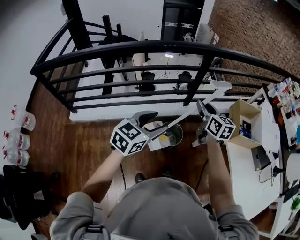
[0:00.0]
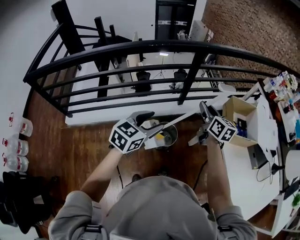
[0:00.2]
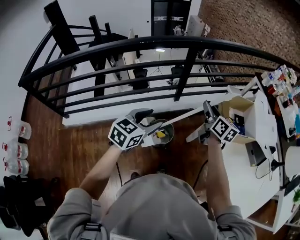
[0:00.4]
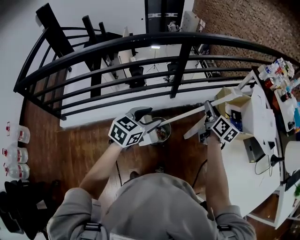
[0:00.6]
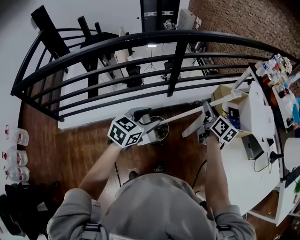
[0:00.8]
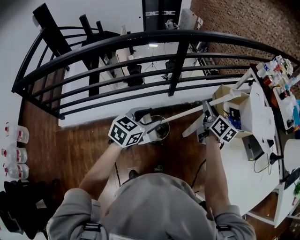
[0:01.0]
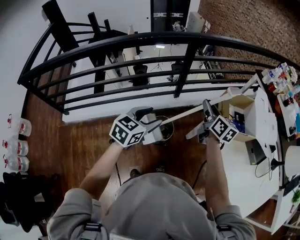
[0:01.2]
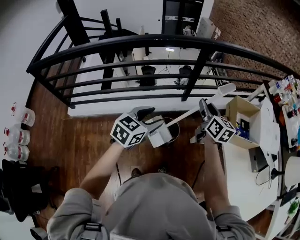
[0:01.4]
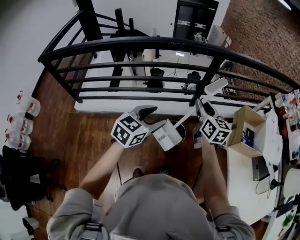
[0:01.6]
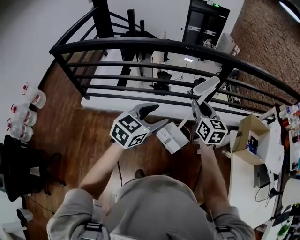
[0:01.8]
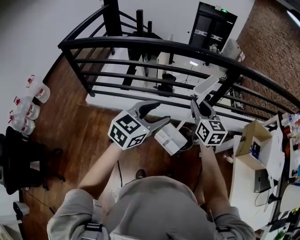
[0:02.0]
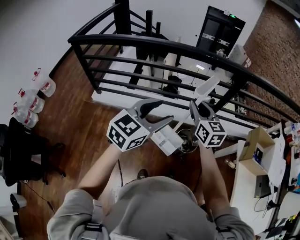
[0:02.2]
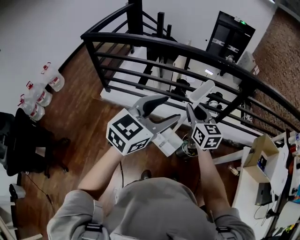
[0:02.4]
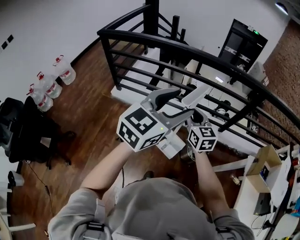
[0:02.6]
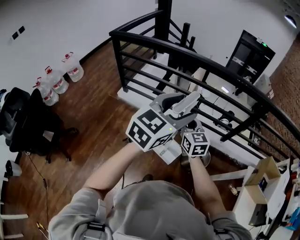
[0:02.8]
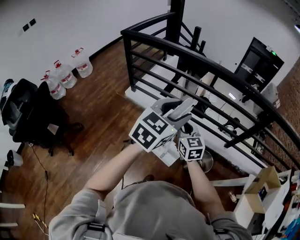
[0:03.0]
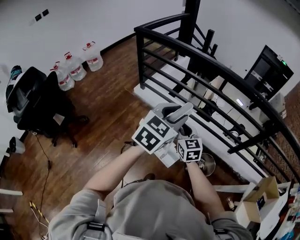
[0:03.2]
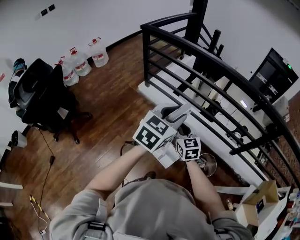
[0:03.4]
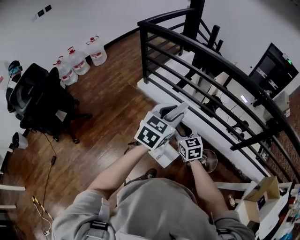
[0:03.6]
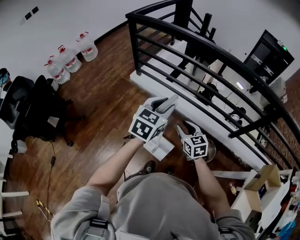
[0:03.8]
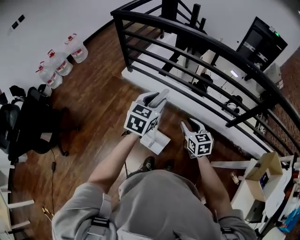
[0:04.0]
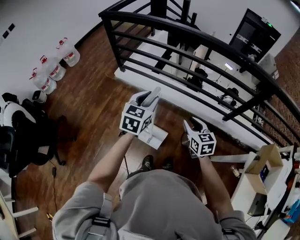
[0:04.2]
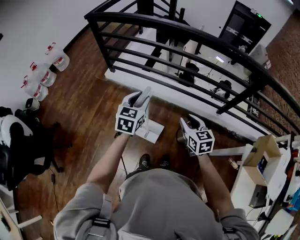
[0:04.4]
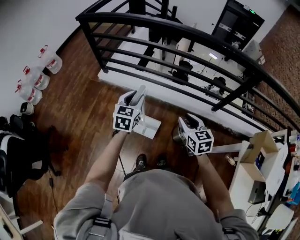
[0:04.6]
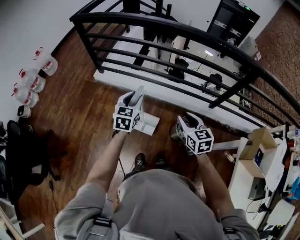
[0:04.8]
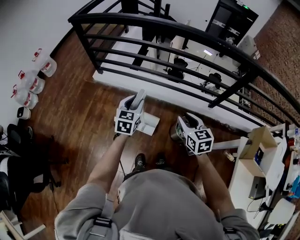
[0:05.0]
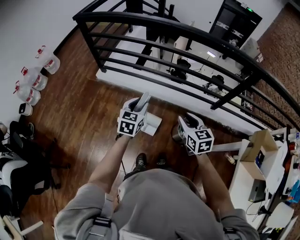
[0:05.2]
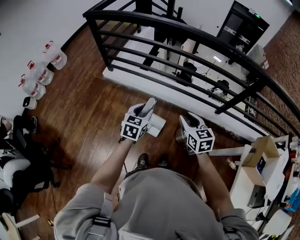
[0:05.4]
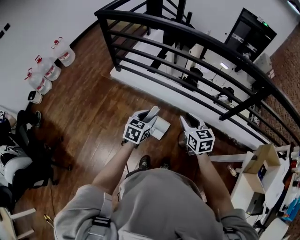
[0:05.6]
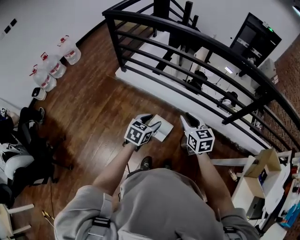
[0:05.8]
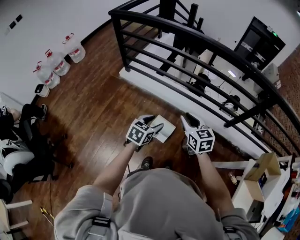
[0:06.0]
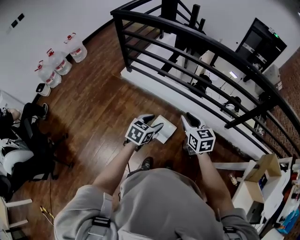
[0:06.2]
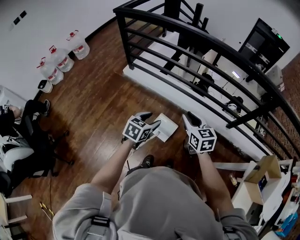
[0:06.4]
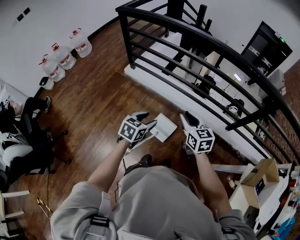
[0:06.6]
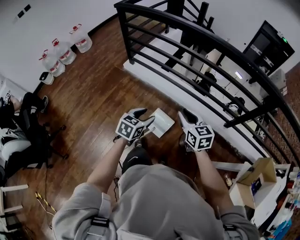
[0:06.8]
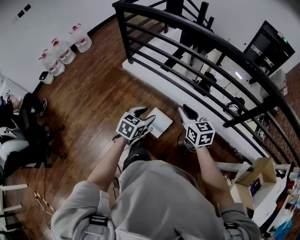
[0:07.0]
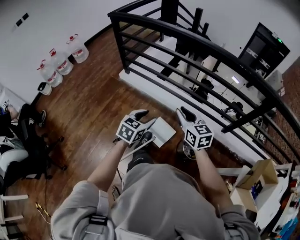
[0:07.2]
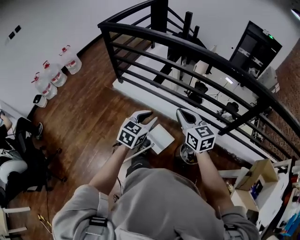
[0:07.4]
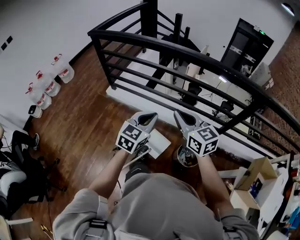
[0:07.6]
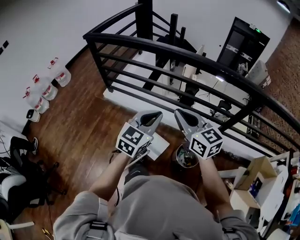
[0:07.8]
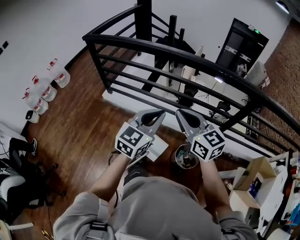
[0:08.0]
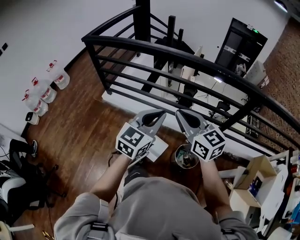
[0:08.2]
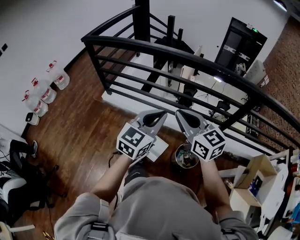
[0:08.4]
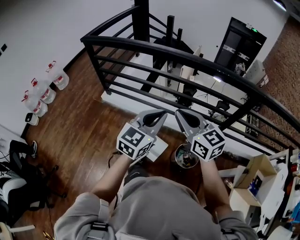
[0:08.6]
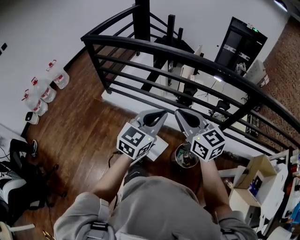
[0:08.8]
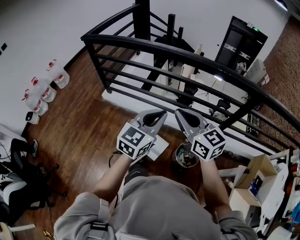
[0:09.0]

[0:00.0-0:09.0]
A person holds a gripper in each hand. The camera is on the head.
0.0 to 1.6 s: The left gripper reaches about 10 cm to the right, then returns. Meanwhile the right gripper travels to the right and back again, approximately 20 cm each way.
1.6 to 3.0 s: The right gripper shifts by roughly 40 cm, and turns by about 40 degrees. The left gripper shifts by roughly 25 cm, and turns by about 30 degrees.
3.0 to 4.4 s: The right gripper is displaced to the right and downward by approximately 15 cm; the left gripper moves downward, some 20 cm, and changes its angle by approximately 20 degrees.
4.4 to 6.0 s: The right gripper heads to the left, covering approximately 5 cm; the left gripper heads downward and backward, covering approximately 15 cm.
6.0 to 7.6 s: The right gripper goes approximately 15 cm upward and to the right, and closes up. The left gripper is displaced upward, to the right and forward by about 20 cm, swivels about 20 degrees, and closes its fingers.
7.6 to 9.0 s: The right gripper shifts by some 5 cm. Meanwhile the left gripper goes about 5 cm upward.

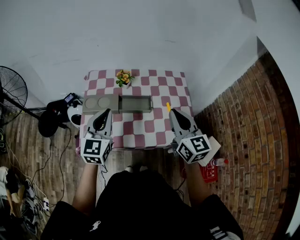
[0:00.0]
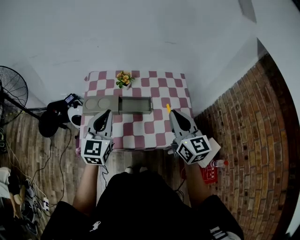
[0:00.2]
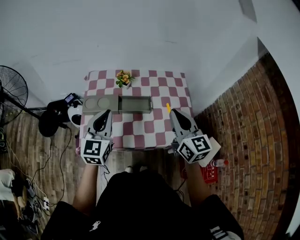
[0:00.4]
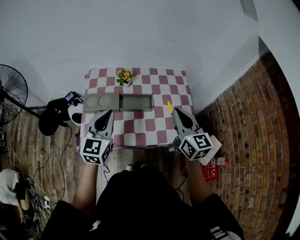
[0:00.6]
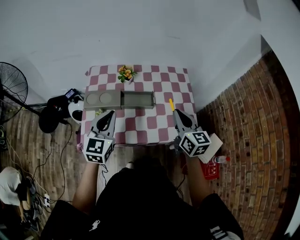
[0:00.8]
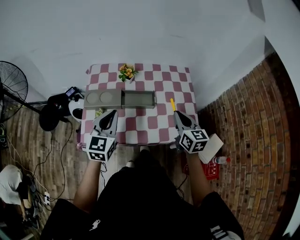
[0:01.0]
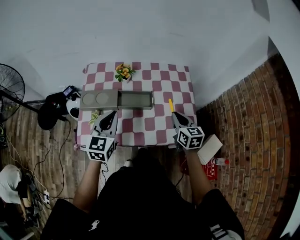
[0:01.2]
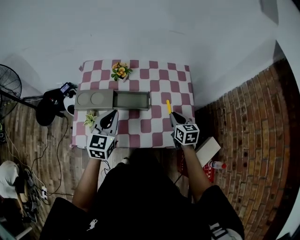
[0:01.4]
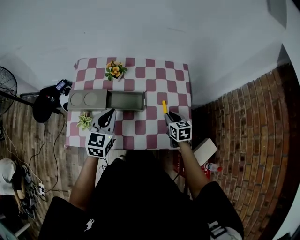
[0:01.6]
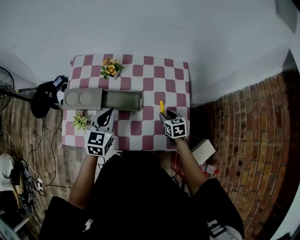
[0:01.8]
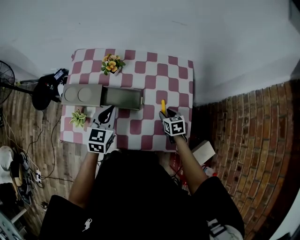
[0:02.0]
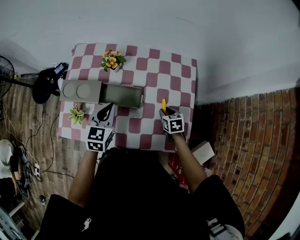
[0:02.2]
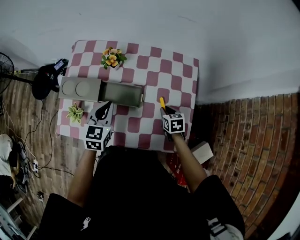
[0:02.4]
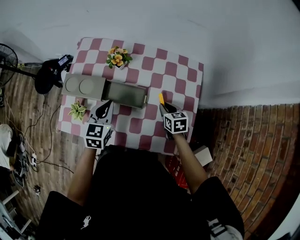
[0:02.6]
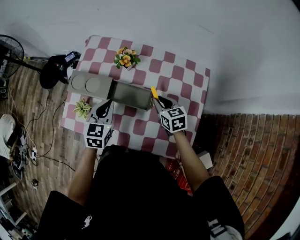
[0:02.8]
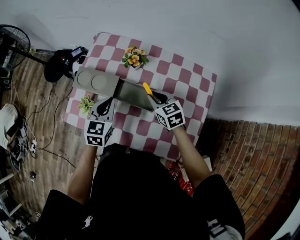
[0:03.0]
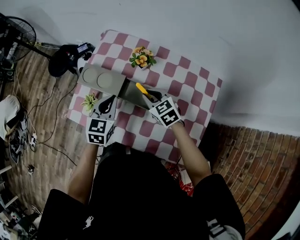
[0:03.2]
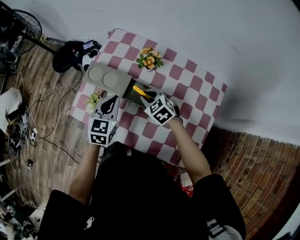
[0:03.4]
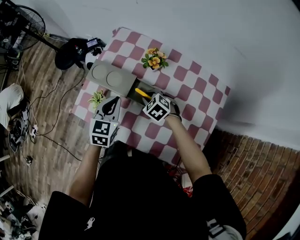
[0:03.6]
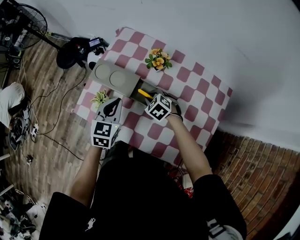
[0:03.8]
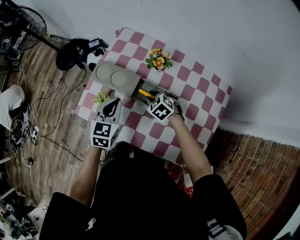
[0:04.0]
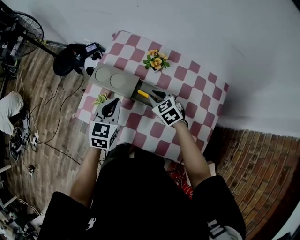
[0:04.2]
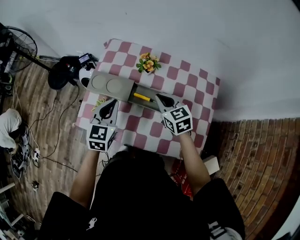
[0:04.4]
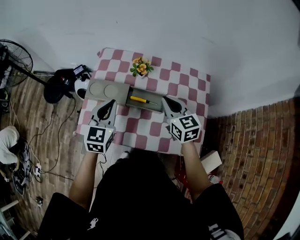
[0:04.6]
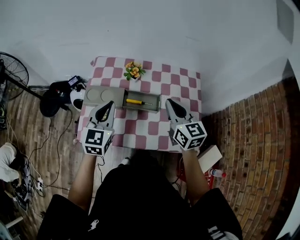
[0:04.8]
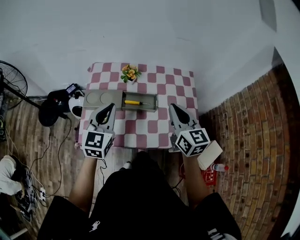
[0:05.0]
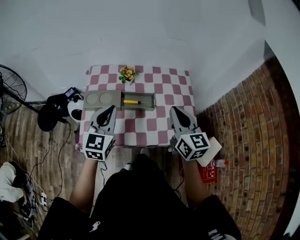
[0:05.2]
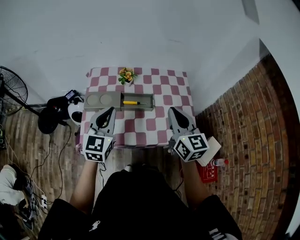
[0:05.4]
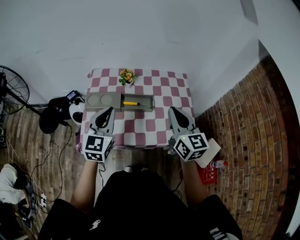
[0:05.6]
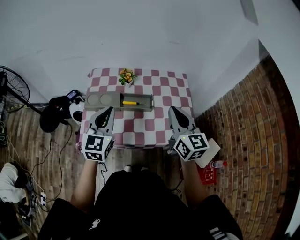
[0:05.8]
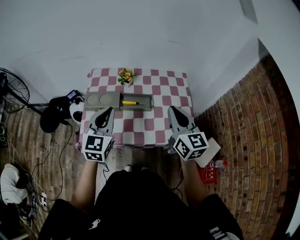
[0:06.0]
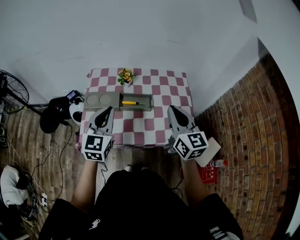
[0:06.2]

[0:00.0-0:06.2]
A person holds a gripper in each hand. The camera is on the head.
0.0 to 1.6 s: The right gripper goes some 30 cm downward and forward, and angles its fingers downward, by approximately 40 degrees. Meanwhile the left gripper moves downward, forward and to the right, roughly 15 cm.
1.6 to 3.2 s: The right gripper goes downward and returns, approximately 10 cm each way, and swivels about 50 degrees, while the left gripper changes place by approximately 10 cm, and rotates approximately 20 degrees.
3.2 to 4.6 s: The right gripper moves upward and backward, approximately 15 cm, and swivels roughly 30 degrees. The left gripper is displaced upward by about 10 cm.
4.6 to 6.2 s: The left gripper goes approximately 15 cm upward and backward; the right gripper travels backward and upward by roughly 20 cm, and swivels roughly 30 degrees.

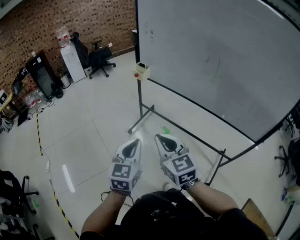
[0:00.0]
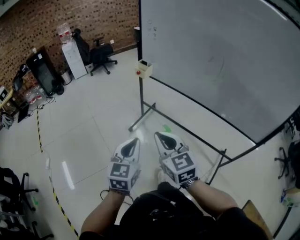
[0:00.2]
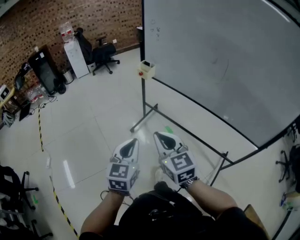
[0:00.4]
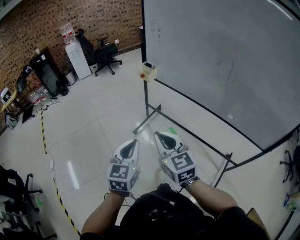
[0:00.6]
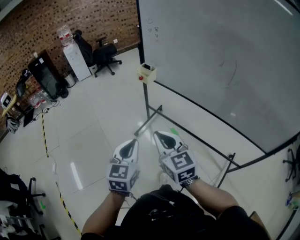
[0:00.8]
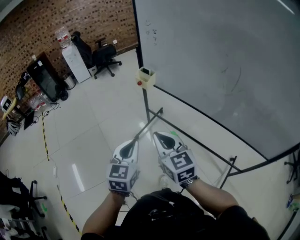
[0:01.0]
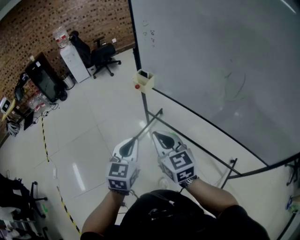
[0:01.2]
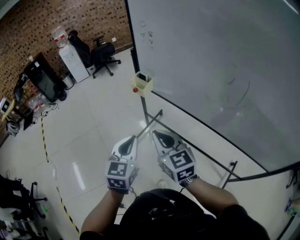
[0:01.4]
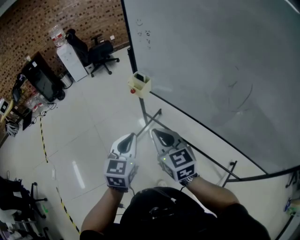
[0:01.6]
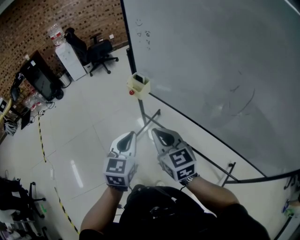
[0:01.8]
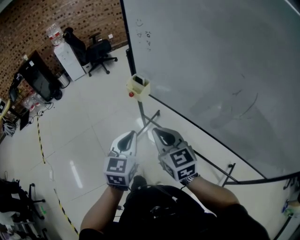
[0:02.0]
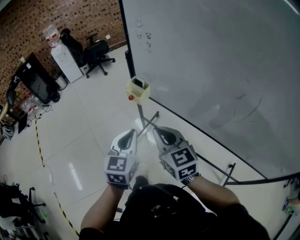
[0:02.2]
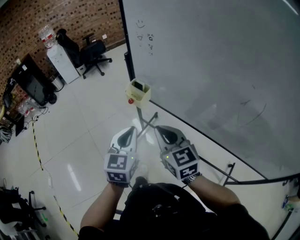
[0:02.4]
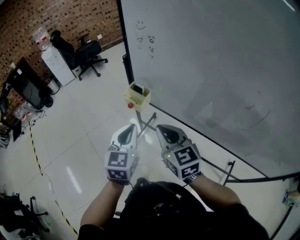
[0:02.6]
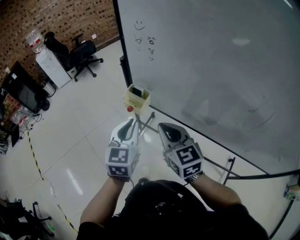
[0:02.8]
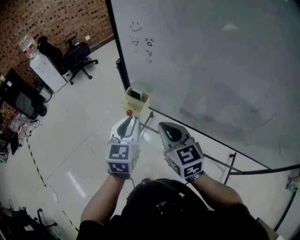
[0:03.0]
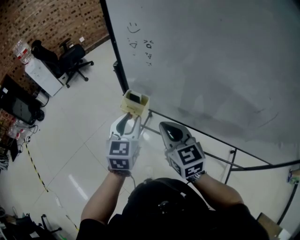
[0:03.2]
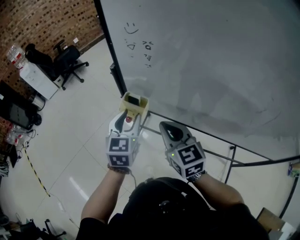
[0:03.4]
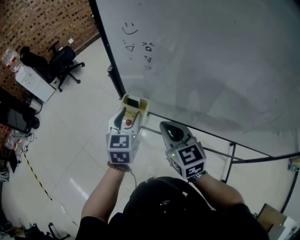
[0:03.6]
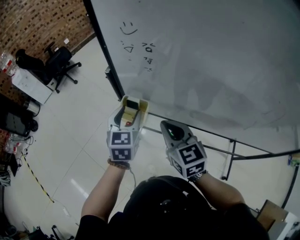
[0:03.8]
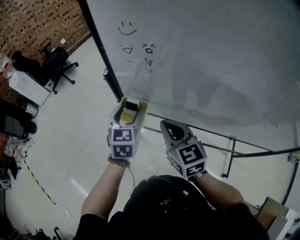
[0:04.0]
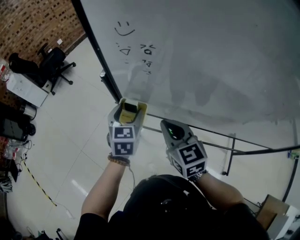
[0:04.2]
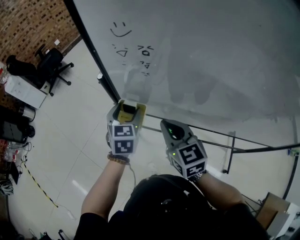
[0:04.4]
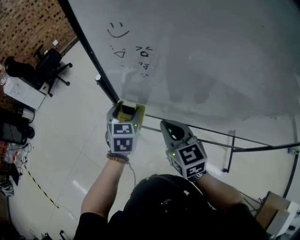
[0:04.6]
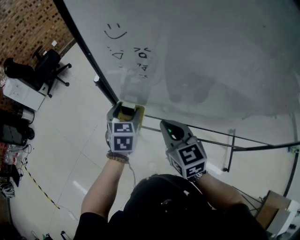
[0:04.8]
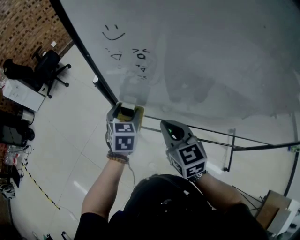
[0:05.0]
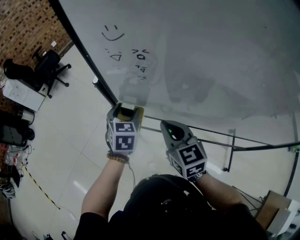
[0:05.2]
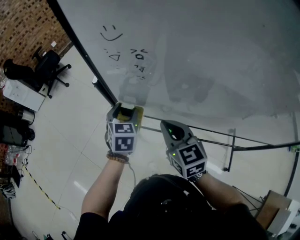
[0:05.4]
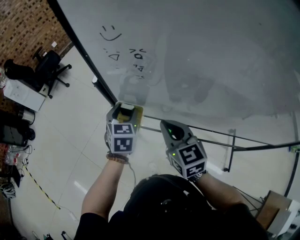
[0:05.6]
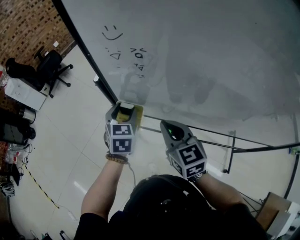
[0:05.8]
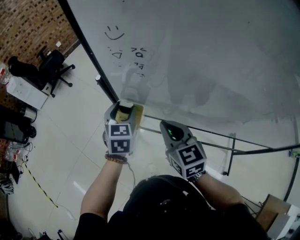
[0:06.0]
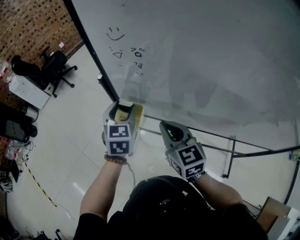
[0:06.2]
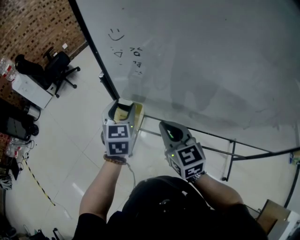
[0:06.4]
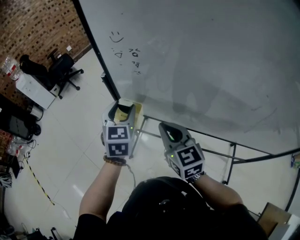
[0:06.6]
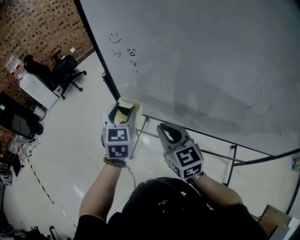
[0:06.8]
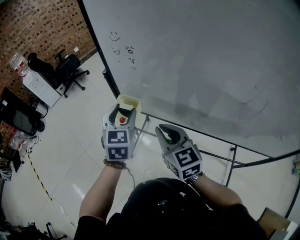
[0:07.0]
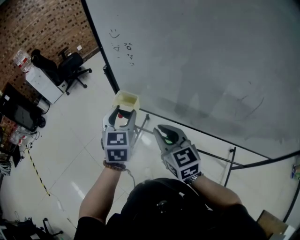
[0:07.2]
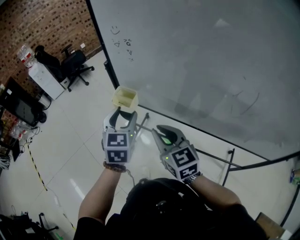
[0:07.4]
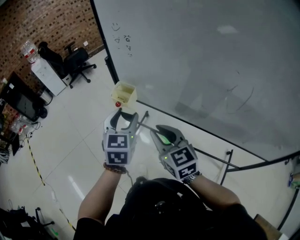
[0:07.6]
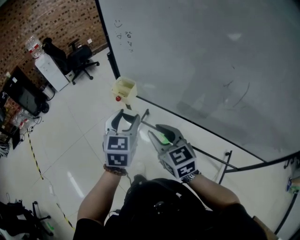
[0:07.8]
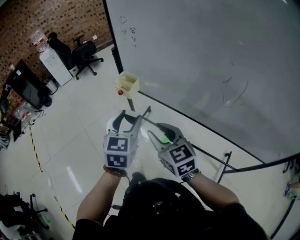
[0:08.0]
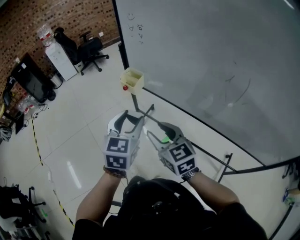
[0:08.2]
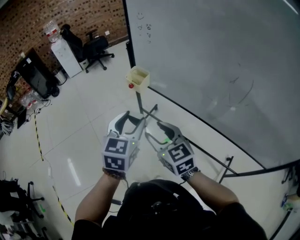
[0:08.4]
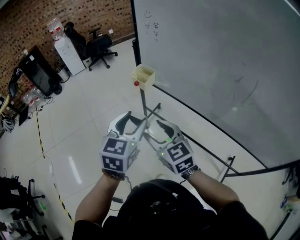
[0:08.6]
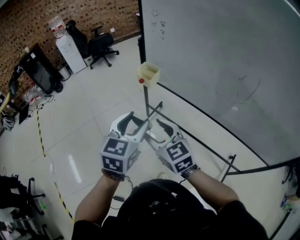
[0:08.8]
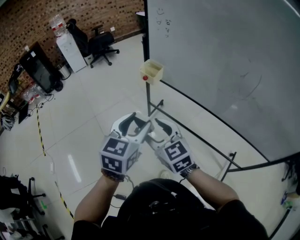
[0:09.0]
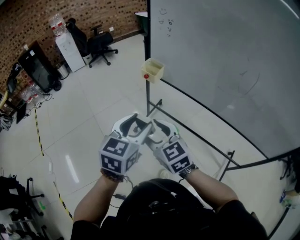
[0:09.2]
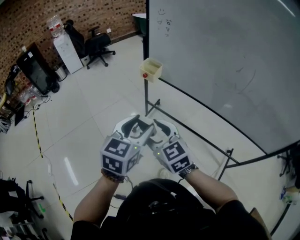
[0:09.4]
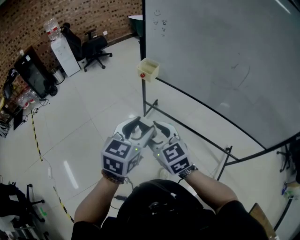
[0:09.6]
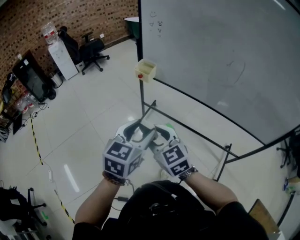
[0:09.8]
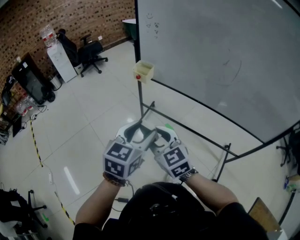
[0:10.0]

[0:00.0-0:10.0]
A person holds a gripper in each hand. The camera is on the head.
0.0 to 1.4 s: Both grippers travel together forward, some 25 cm.
1.4 to 2.8 s: The two grippers go about 20 cm forward.
2.8 to 4.2 s: The left gripper goes approximately 20 cm forward and downward, and opens its fingers. The right gripper travels forward by approximately 10 cm.
4.2 to 5.8 s: The grippers stay close to where they were, moving slightly.
5.8 to 7.2 s: The right gripper shifts about 10 cm backward; the left gripper shifts some 20 cm backward and upward.
7.2 to 8.6 s: The right gripper heads backward and to the left, covering about 15 cm, changes its angle by roughly 20 degrees, and opens. Meanwhile the left gripper is displaced backward by some 25 cm.
8.6 to 10.0 s: The right gripper shifts approximately 15 cm backward and to the left. The left gripper is displaced backward by roughly 15 cm.
